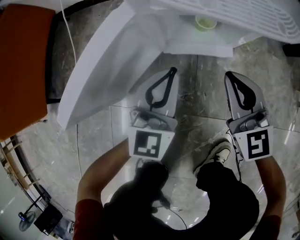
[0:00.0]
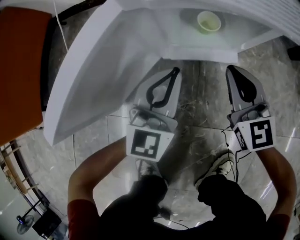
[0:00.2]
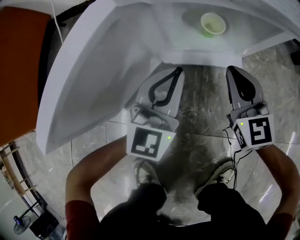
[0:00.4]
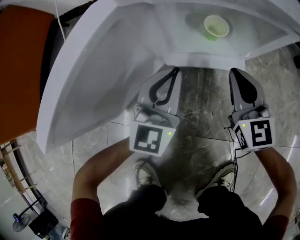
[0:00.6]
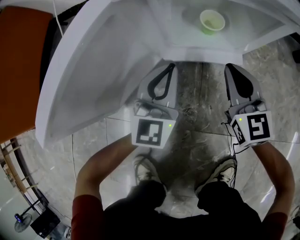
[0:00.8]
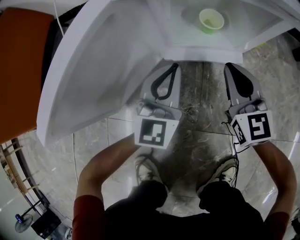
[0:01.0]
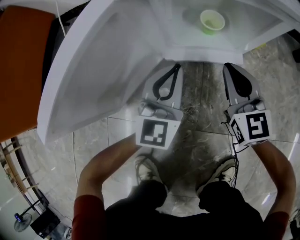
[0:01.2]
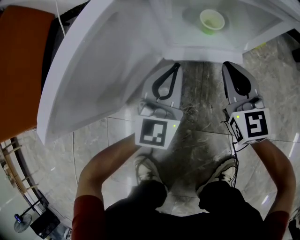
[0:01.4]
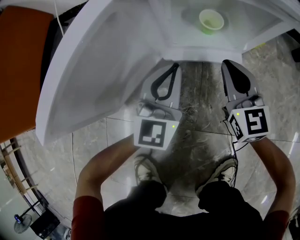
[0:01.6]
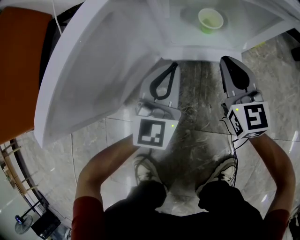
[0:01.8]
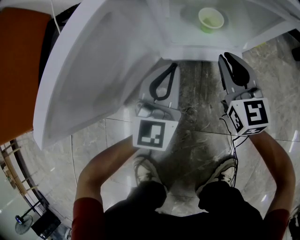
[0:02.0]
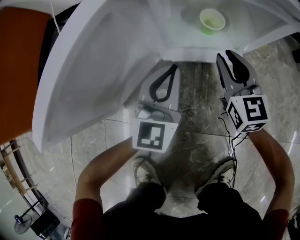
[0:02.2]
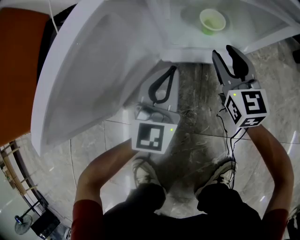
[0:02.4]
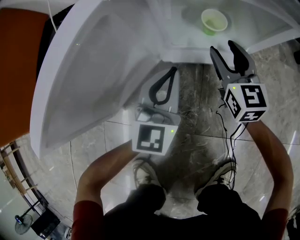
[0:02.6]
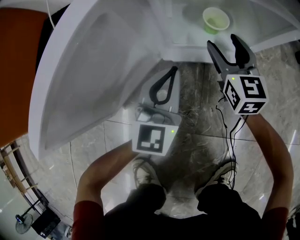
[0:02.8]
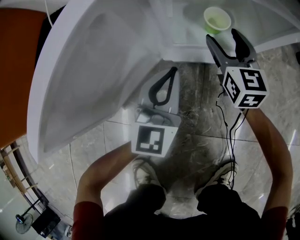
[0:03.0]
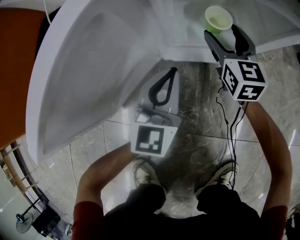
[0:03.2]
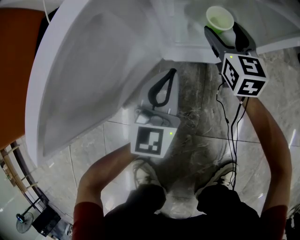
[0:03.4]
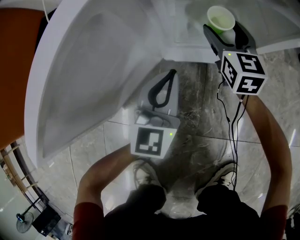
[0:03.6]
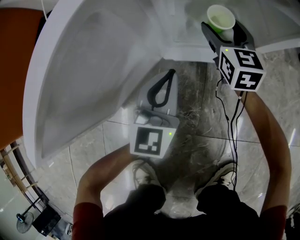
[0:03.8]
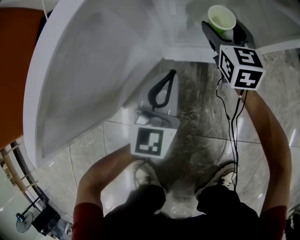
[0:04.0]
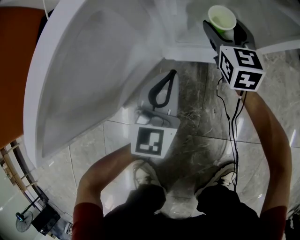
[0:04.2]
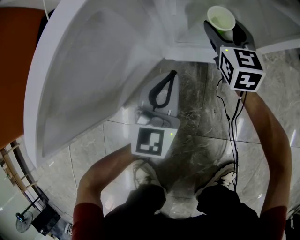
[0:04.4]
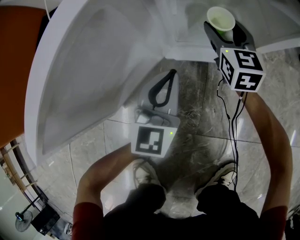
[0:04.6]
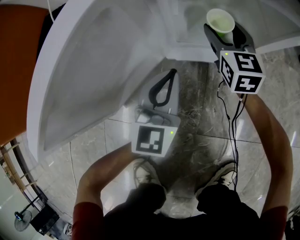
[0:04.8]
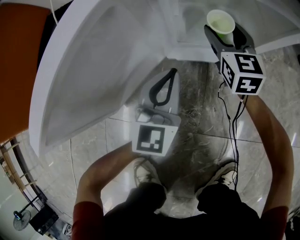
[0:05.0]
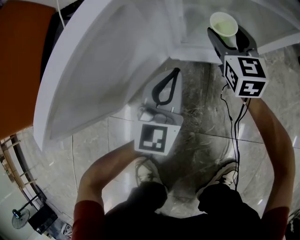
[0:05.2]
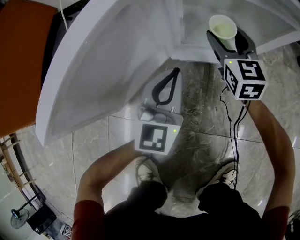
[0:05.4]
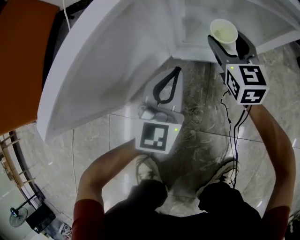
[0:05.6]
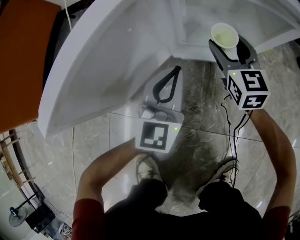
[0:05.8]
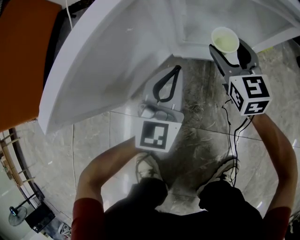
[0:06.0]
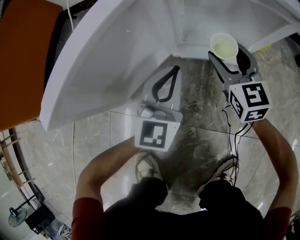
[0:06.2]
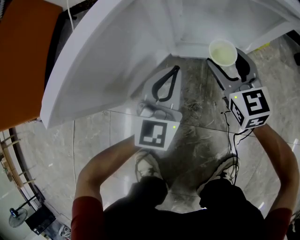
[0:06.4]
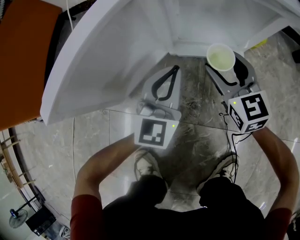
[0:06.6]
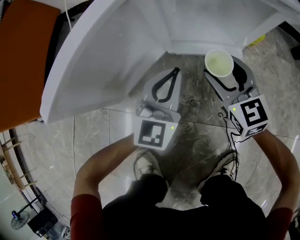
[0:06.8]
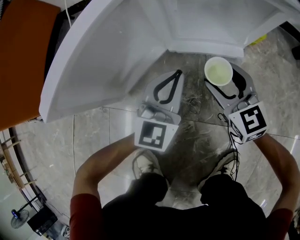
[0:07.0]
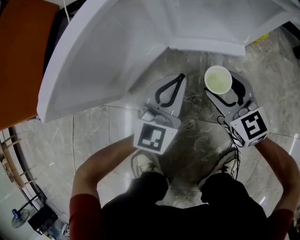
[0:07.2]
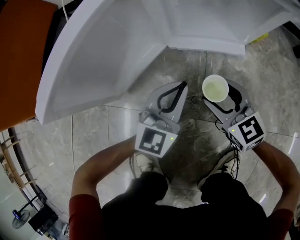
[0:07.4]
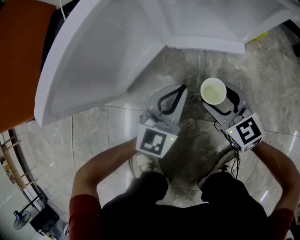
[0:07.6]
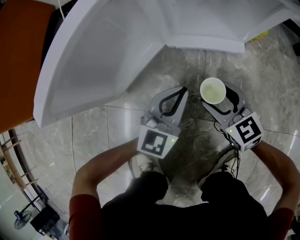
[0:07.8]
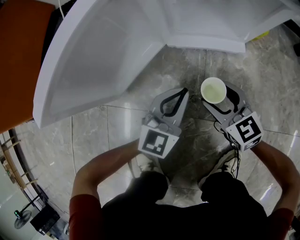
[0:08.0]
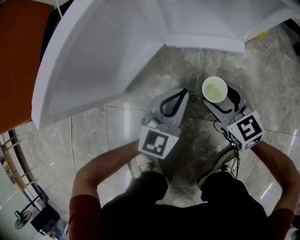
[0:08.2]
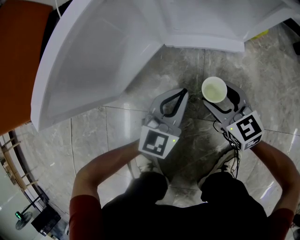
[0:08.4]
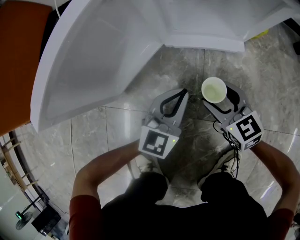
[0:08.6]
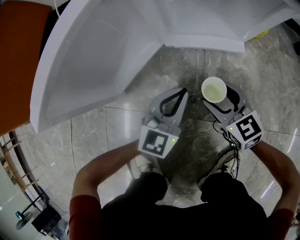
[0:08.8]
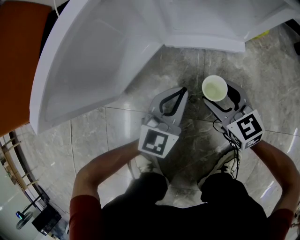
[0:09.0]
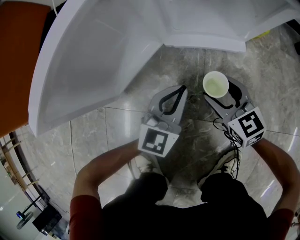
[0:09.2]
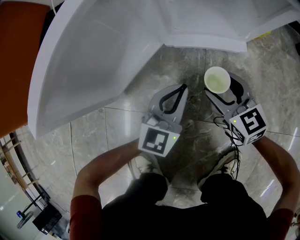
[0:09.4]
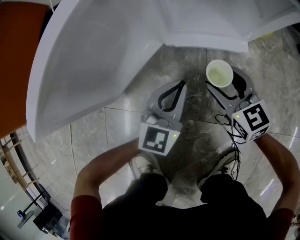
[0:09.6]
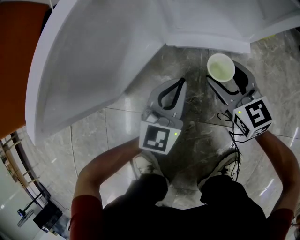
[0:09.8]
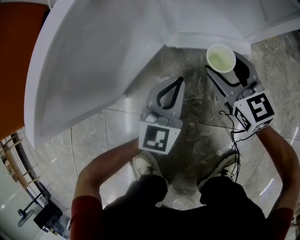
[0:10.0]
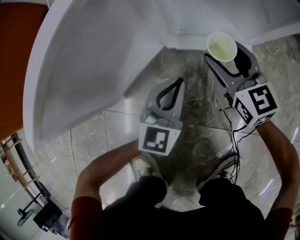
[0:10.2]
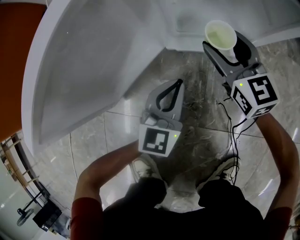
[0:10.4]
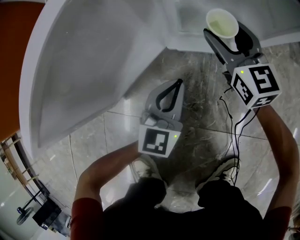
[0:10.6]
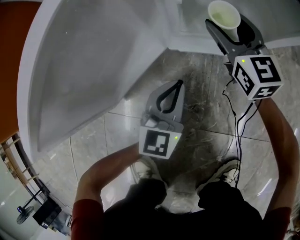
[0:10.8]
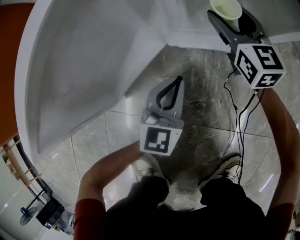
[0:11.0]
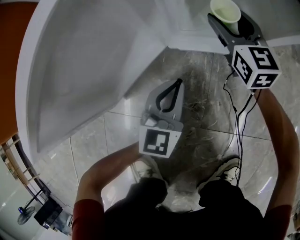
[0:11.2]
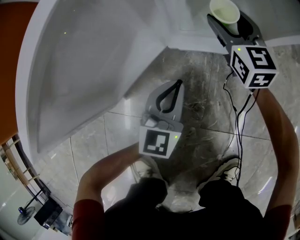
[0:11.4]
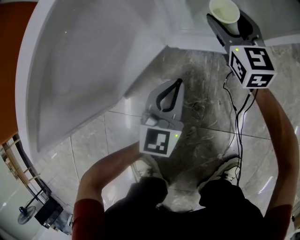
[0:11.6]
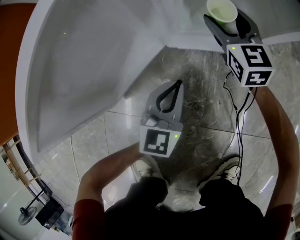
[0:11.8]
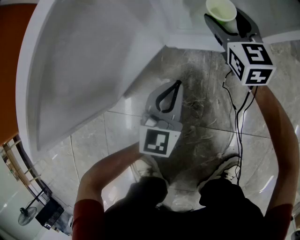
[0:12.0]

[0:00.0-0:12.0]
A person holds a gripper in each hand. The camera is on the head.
0.0 to 1.6 s: The left gripper goes roughly 10 cm downward, while the right gripper heads downward and forward, covering approximately 15 cm.
1.6 to 3.0 s: The right gripper goes roughly 10 cm forward, and opens.
3.0 to 4.4 s: The grippers move only a little.
4.4 to 6.0 s: The left gripper changes place by some 5 cm; the right gripper shifts some 10 cm backward.
6.0 to 7.6 s: The left gripper travels backward by roughly 10 cm, while the right gripper shifts roughly 20 cm backward, and swivels approximately 20 degrees.
7.6 to 9.0 s: The grippers make only small movements.
9.0 to 10.4 s: The left gripper is displaced forward by approximately 5 cm. The right gripper goes some 15 cm forward.
10.4 to 12.0 s: The right gripper heads forward, covering about 10 cm.

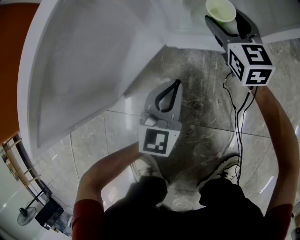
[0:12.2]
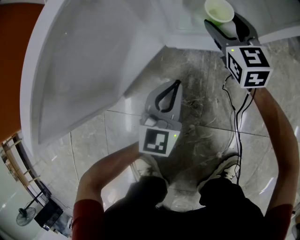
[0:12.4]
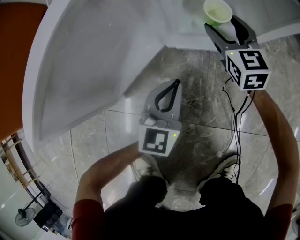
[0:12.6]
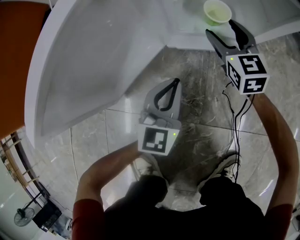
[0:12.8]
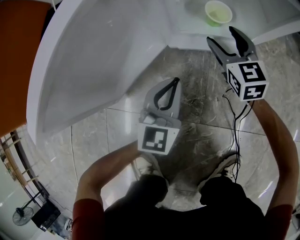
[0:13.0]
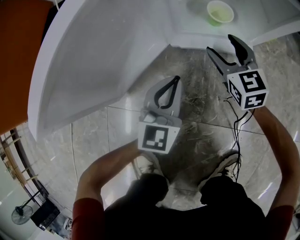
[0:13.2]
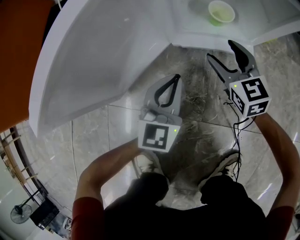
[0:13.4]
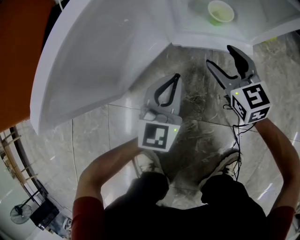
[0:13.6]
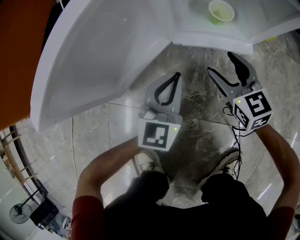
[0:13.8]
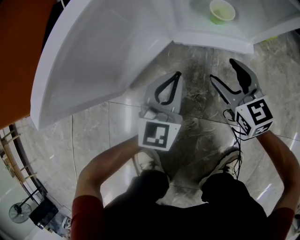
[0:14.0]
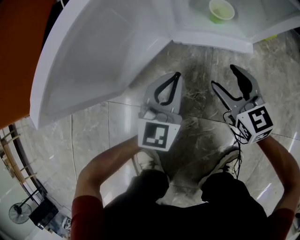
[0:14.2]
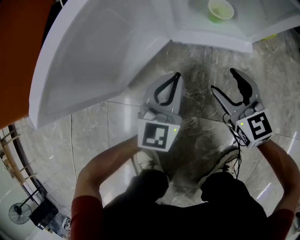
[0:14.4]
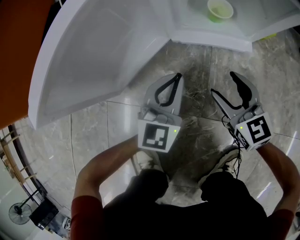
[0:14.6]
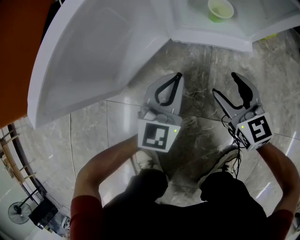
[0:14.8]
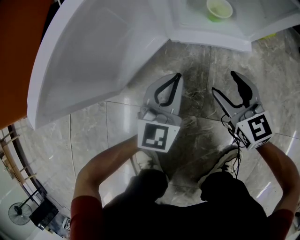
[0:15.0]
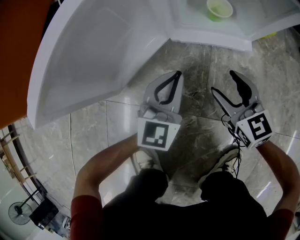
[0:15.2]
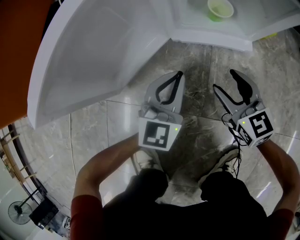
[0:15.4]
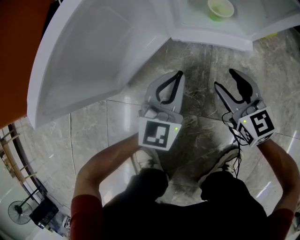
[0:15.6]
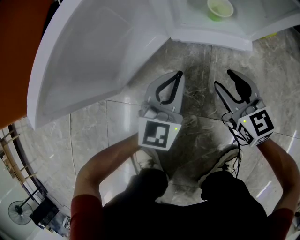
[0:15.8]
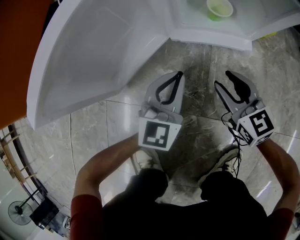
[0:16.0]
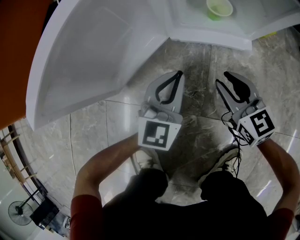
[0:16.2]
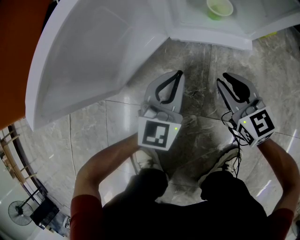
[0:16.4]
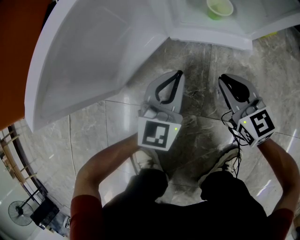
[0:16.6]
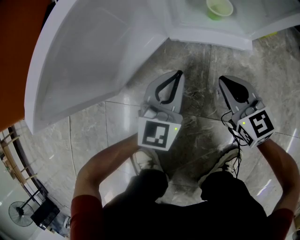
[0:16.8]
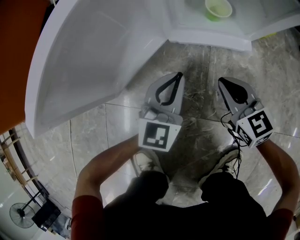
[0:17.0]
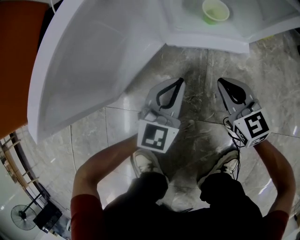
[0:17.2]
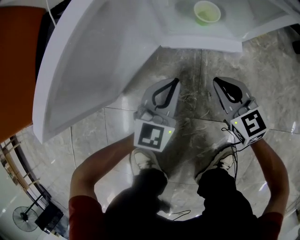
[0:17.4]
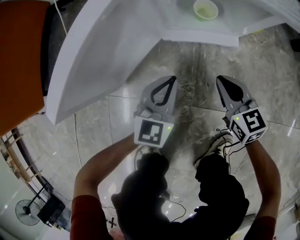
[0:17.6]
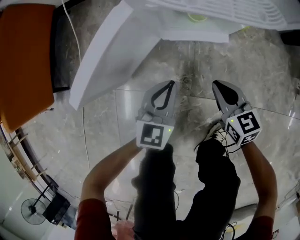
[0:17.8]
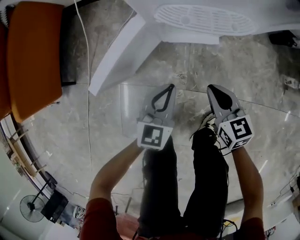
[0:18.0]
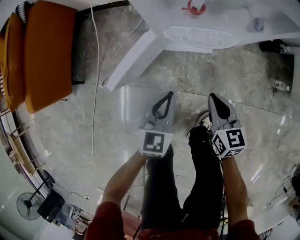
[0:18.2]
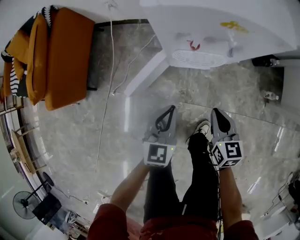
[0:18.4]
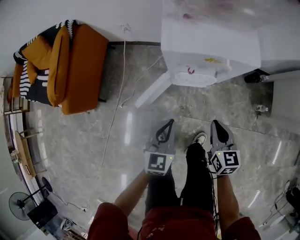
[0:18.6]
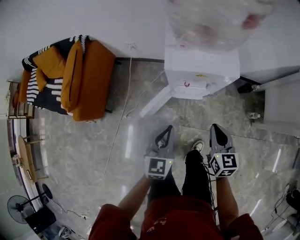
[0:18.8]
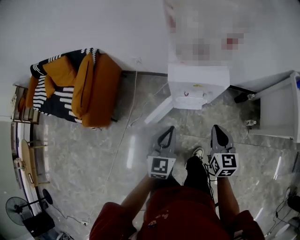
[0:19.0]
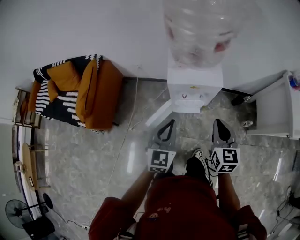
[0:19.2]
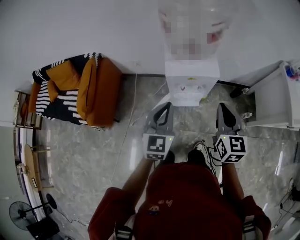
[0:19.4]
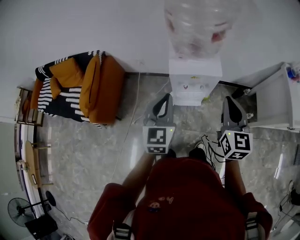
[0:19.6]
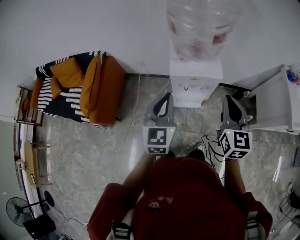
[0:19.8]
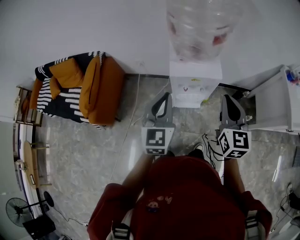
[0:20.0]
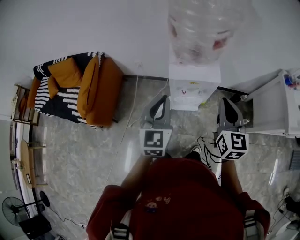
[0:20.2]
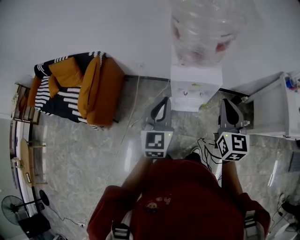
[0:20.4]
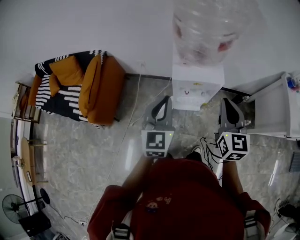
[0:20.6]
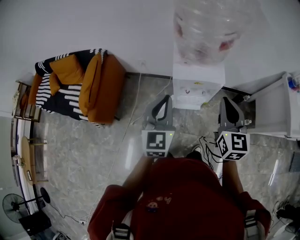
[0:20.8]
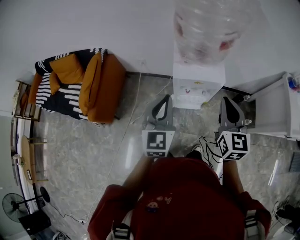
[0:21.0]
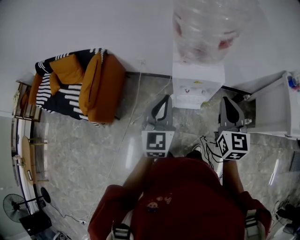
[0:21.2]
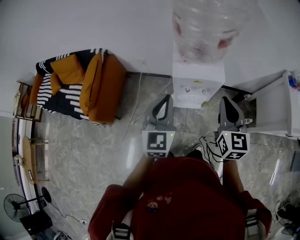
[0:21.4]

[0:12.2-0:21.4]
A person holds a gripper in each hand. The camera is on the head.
12.2 to 13.8 s: The right gripper travels backward by some 15 cm.
13.8 to 15.2 s: The right gripper moves backward, about 5 cm.
15.2 to 16.8 s: The right gripper closes its fingers.
16.8 to 18.4 s: Both grippers move upward, approximately 50 cm. The right gripper turns by approximately 30 degrees.
18.4 to 19.8 s: The grippers both shift upward by about 50 cm. The right gripper changes its angle by approximately 30 degrees.
19.8 to 21.4 s: The grippers make only small movements.

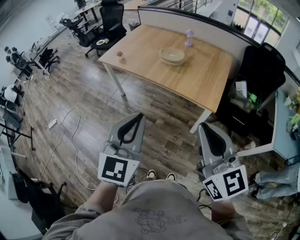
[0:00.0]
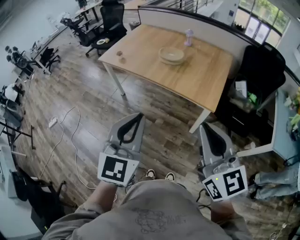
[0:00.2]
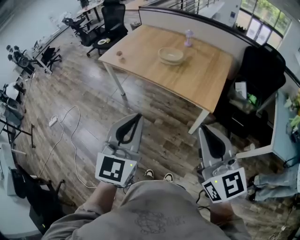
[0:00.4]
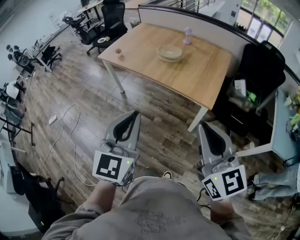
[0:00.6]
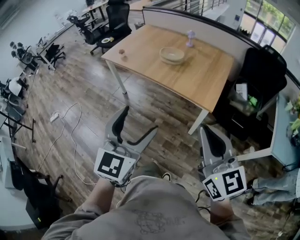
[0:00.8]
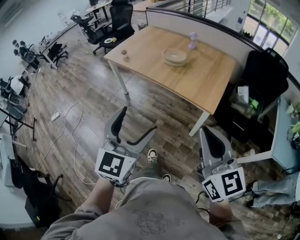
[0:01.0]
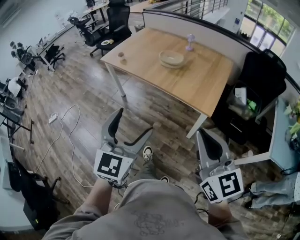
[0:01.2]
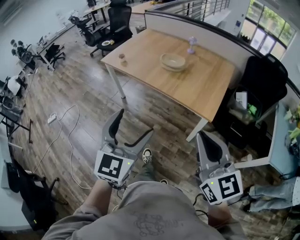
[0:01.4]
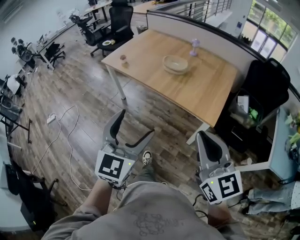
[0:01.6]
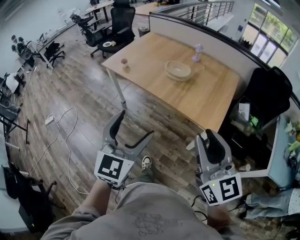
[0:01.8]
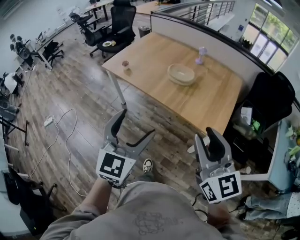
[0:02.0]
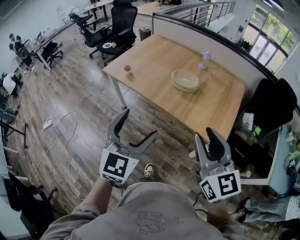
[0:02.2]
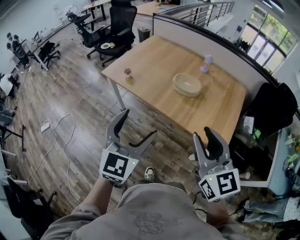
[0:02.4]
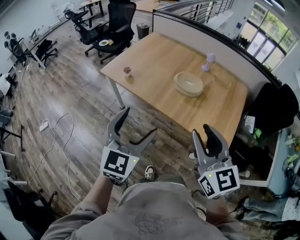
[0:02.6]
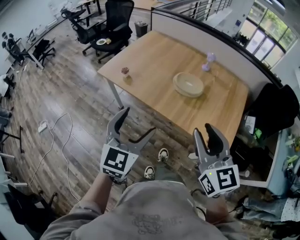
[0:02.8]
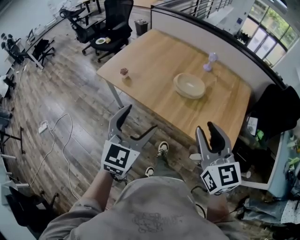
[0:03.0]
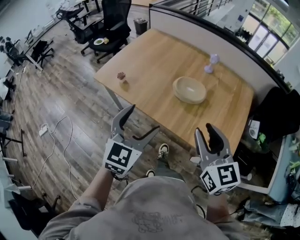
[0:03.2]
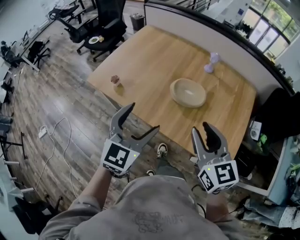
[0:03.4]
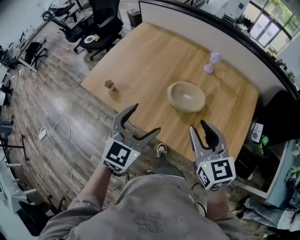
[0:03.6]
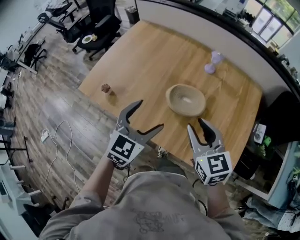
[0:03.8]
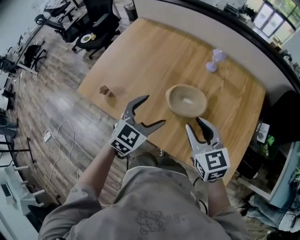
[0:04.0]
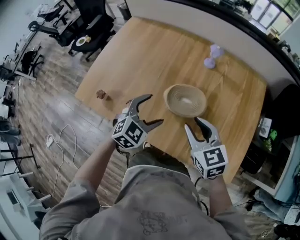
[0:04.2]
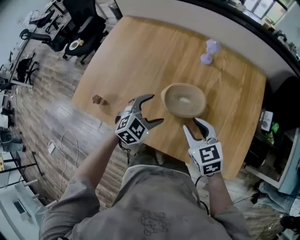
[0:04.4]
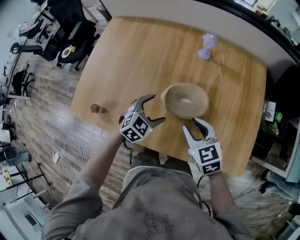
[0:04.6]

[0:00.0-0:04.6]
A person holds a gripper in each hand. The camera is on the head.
0.0 to 1.6 s: The left gripper ends up some 5 cm from where it was, and opens up. The right gripper ends up about 5 cm from where it was.
1.6 to 3.0 s: Both grippers move forward, approximately 30 cm. The right gripper opens its fingers.
3.0 to 4.6 s: Both grippers move forward and downward, roughly 40 cm. The left gripper angles its fingers downward, by roughly 30 degrees, while the right gripper swivels approximately 30 degrees.
